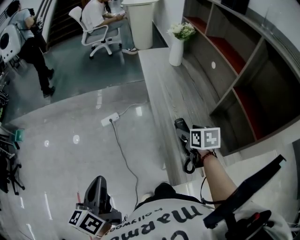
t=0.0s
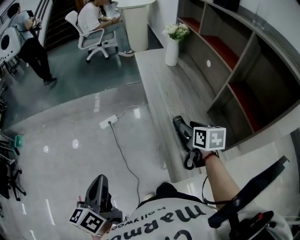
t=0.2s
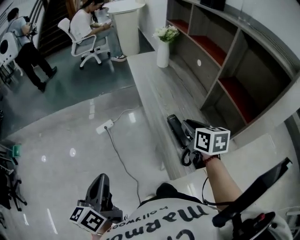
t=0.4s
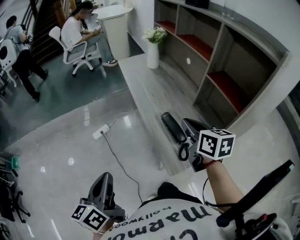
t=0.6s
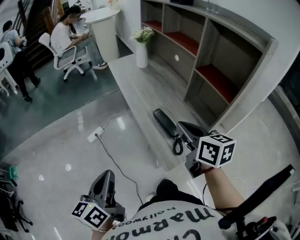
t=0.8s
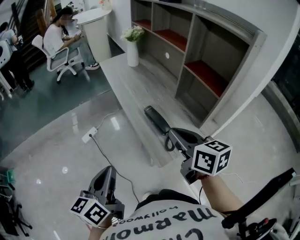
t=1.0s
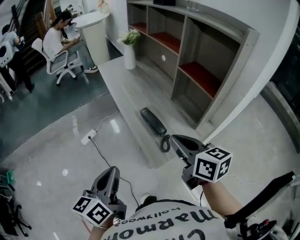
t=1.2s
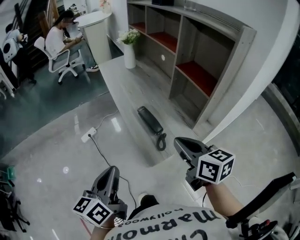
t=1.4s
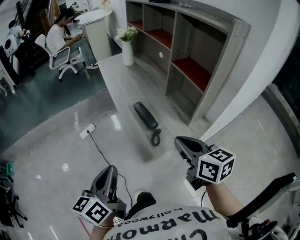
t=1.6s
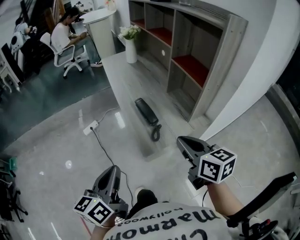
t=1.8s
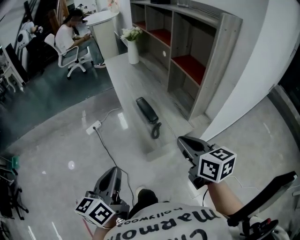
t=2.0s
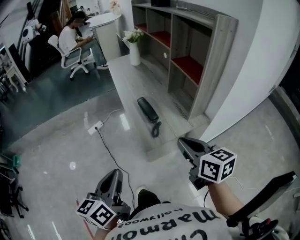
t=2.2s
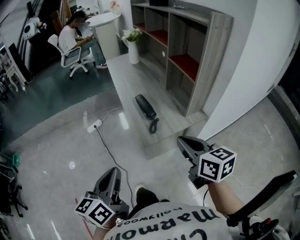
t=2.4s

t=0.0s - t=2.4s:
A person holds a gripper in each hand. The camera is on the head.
t=0.0s - t=1.2s: The left gripper is displaced to the right by roughly 10 cm, and changes its angle by approximately 30 degrees; the right gripper travels backward and upward by approximately 25 cm, turns by approximately 30 degrees, and closes up.
t=1.2s - t=2.4s: Both grippers move backward and to the right, some 15 cm.

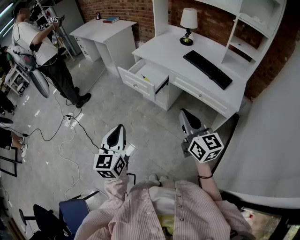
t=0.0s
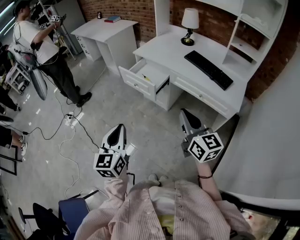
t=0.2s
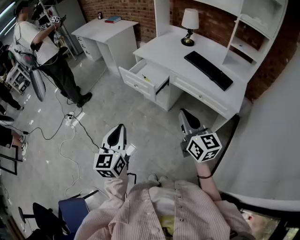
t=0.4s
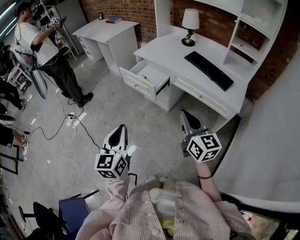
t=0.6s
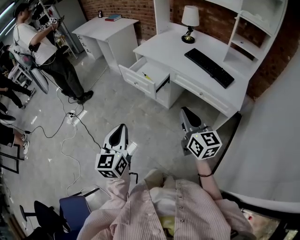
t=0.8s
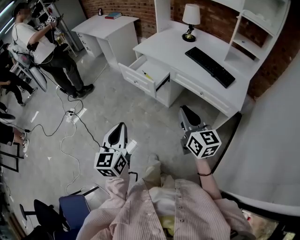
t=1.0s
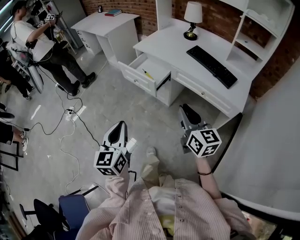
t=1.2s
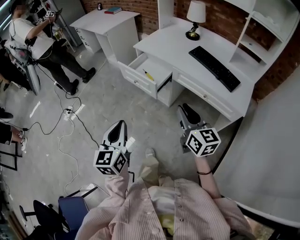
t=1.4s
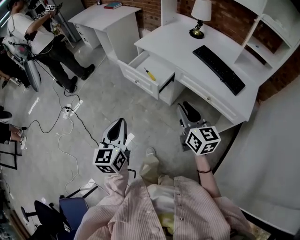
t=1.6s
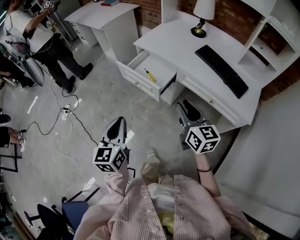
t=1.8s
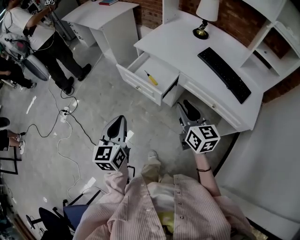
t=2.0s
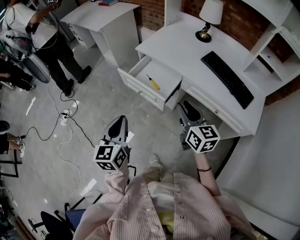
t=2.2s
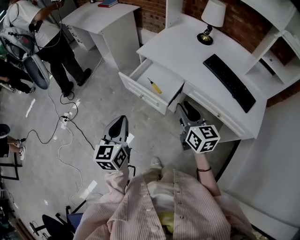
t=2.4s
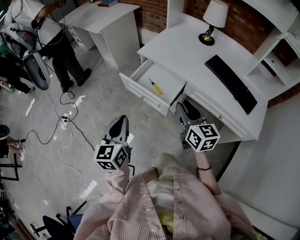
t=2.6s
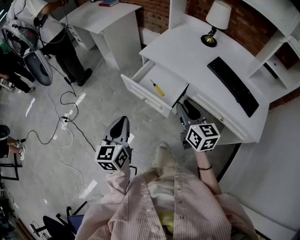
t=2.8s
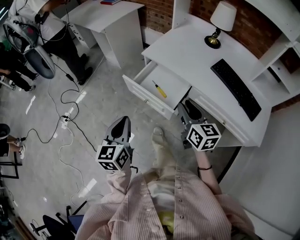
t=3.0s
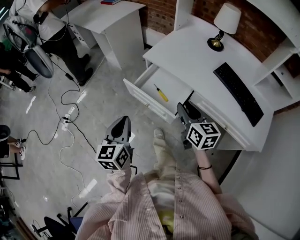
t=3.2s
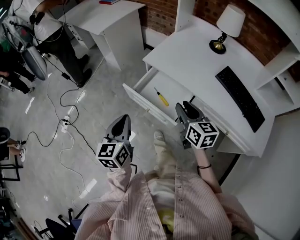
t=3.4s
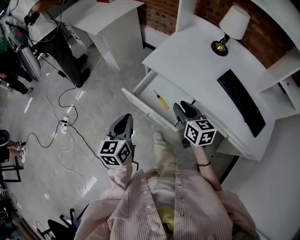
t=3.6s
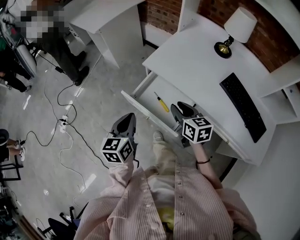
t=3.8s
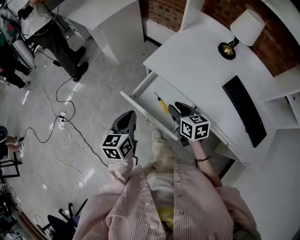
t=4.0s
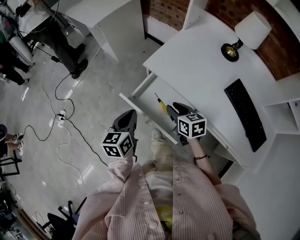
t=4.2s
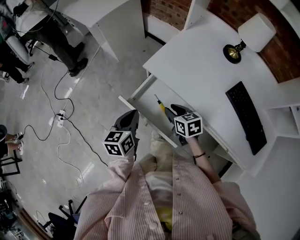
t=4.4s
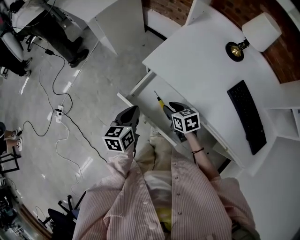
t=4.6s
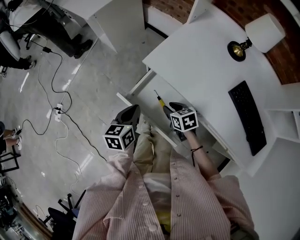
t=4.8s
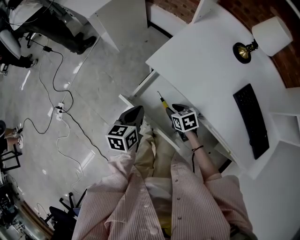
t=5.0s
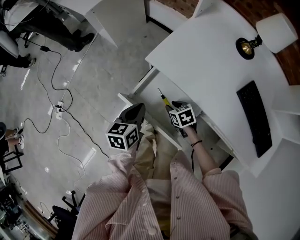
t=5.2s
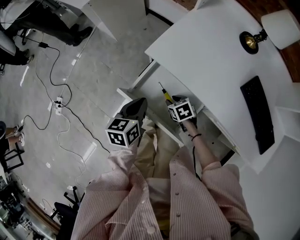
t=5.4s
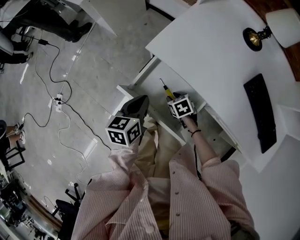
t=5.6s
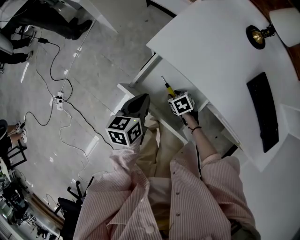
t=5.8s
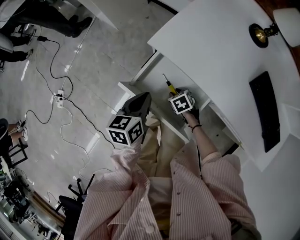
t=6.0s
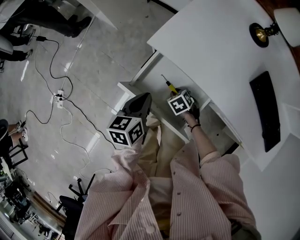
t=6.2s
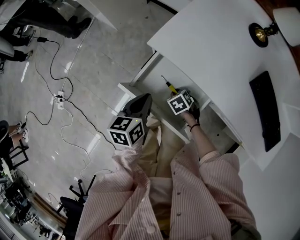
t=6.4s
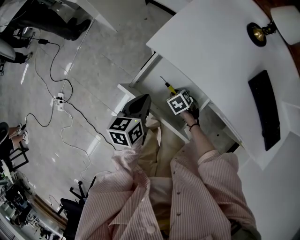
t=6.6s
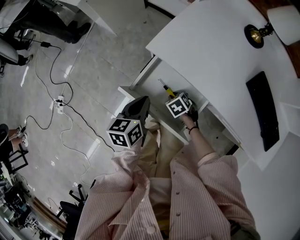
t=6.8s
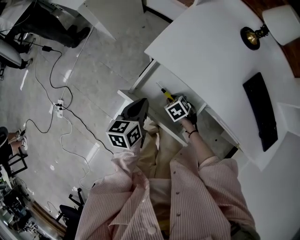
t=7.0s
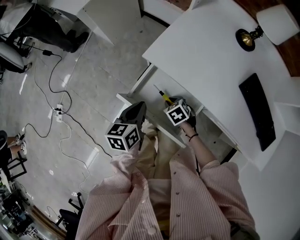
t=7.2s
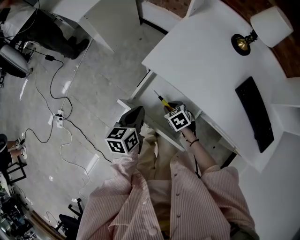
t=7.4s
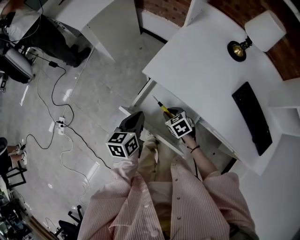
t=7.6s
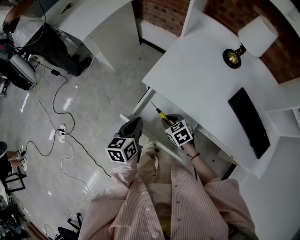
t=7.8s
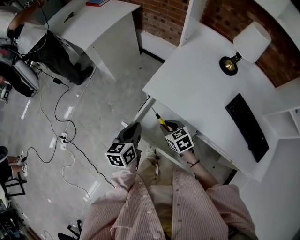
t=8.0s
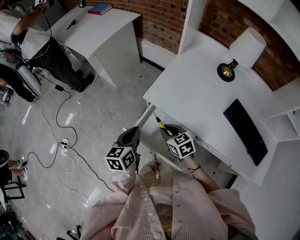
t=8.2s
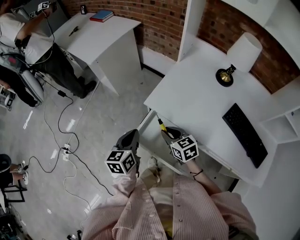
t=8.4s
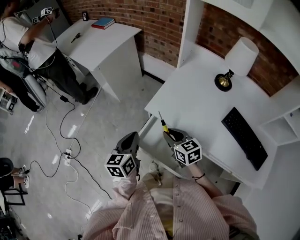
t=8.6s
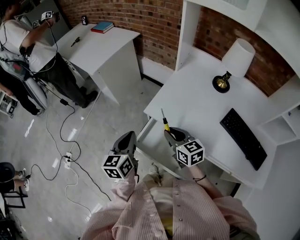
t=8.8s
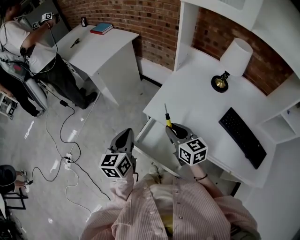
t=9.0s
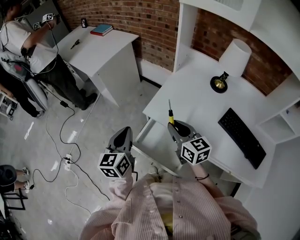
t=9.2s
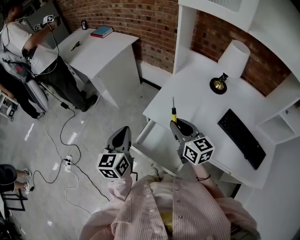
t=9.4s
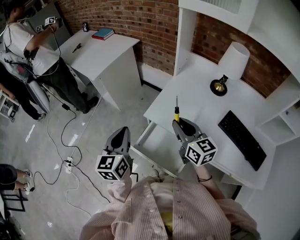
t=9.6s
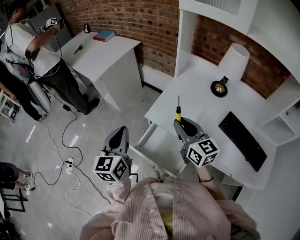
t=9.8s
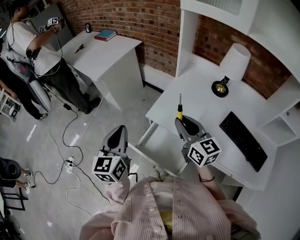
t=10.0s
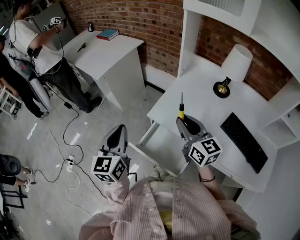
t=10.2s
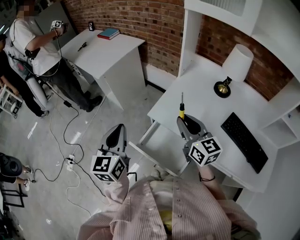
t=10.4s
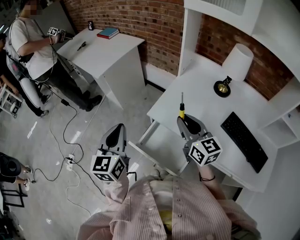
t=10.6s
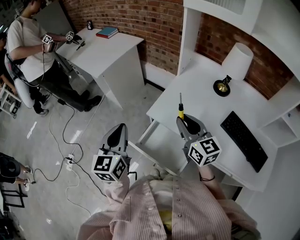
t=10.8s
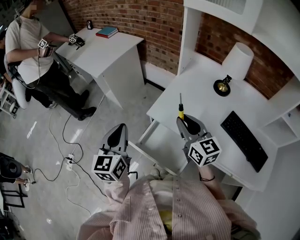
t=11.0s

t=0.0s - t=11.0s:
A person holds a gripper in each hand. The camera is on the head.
t=0.0s - t=1.6s: The right gripper moves forward and downward, approximately 15 cm, and opens, while the left gripper is displaced forward by approximately 10 cm.
t=1.6s - t=3.2s: The two grippers go about 25 cm forward.
t=3.2s - t=4.8s: The left gripper is displaced forward and downward by roughly 25 cm, and rotates about 20 degrees, while the right gripper shifts roughly 30 cm downward and forward, and tilts its fingers roughly 30 degrees downward.
t=4.8s - t=6.2s: The right gripper is displaced downward by some 15 cm, and changes its angle by some 30 degrees. The left gripper moves some 5 cm.
t=6.2s - t=7.8s: The left gripper moves approximately 5 cm. Meanwhile the right gripper heads upward, covering approximately 15 cm, and rotates about 20 degrees.
t=7.8s - t=9.4s: The right gripper goes some 25 cm upward, and tilts its fingers approximately 40 degrees upward; the left gripper shifts some 15 cm upward, and swivels some 20 degrees.
t=9.4s - t=11.0s: The left gripper changes place by roughly 5 cm.

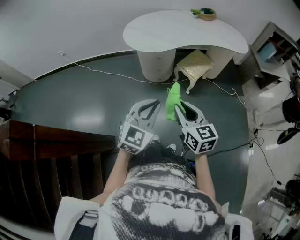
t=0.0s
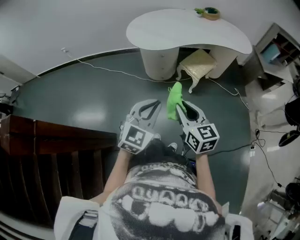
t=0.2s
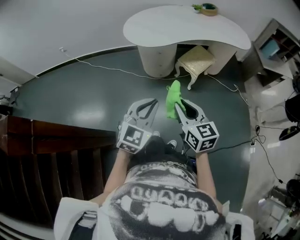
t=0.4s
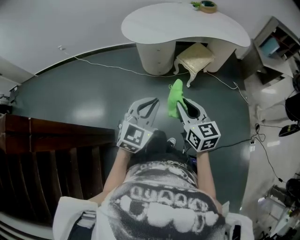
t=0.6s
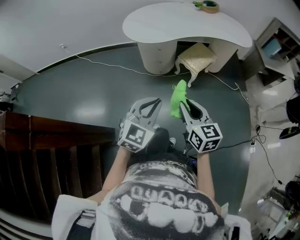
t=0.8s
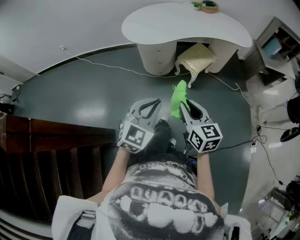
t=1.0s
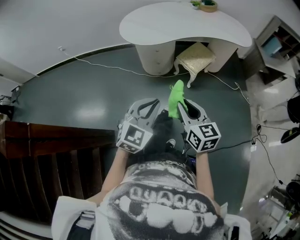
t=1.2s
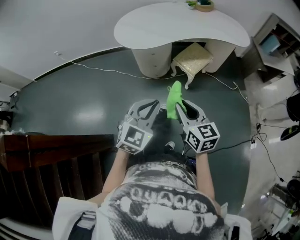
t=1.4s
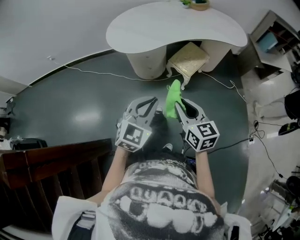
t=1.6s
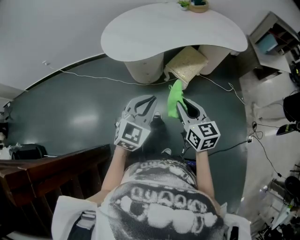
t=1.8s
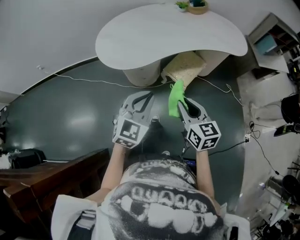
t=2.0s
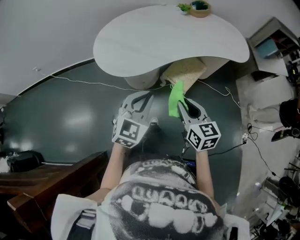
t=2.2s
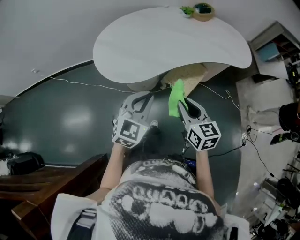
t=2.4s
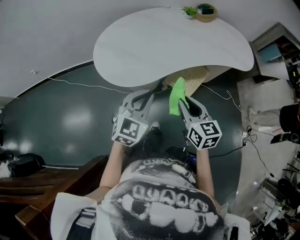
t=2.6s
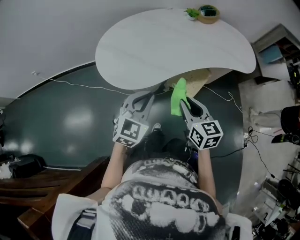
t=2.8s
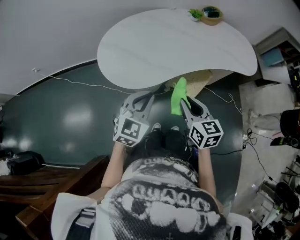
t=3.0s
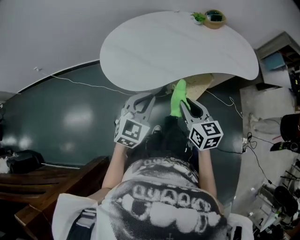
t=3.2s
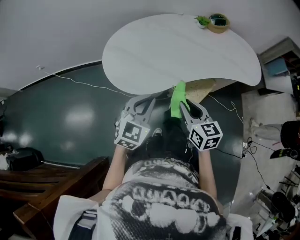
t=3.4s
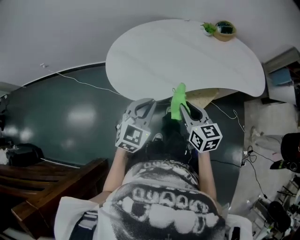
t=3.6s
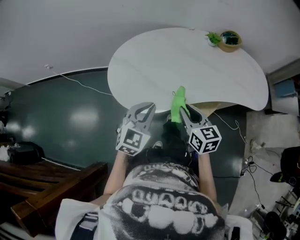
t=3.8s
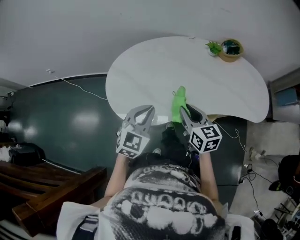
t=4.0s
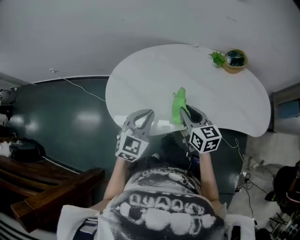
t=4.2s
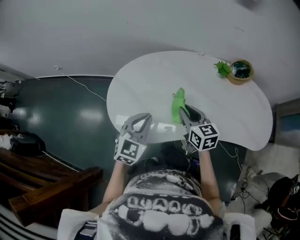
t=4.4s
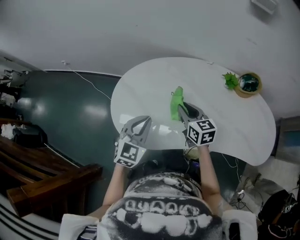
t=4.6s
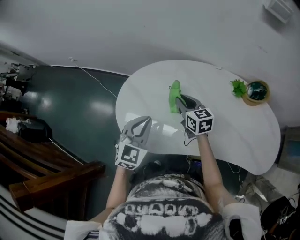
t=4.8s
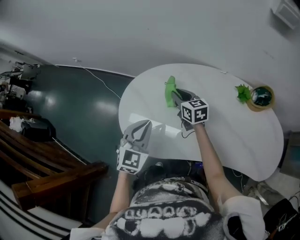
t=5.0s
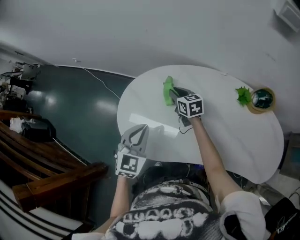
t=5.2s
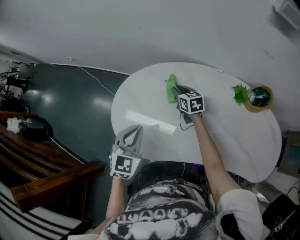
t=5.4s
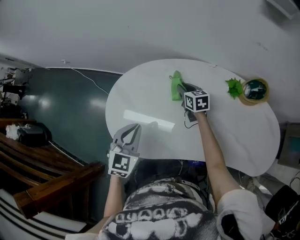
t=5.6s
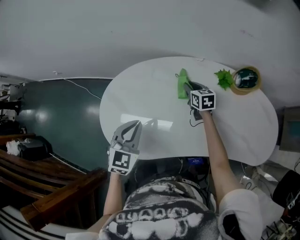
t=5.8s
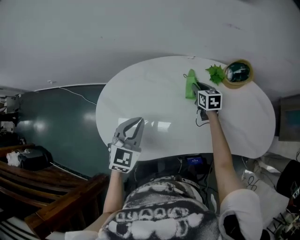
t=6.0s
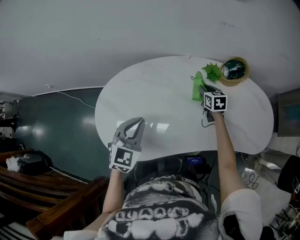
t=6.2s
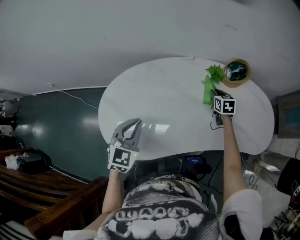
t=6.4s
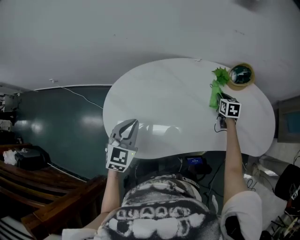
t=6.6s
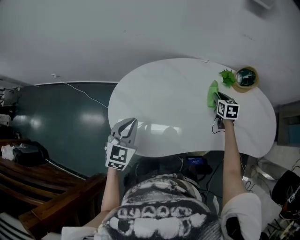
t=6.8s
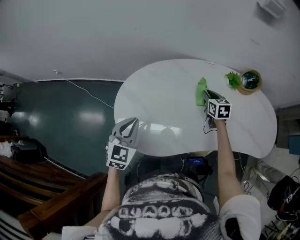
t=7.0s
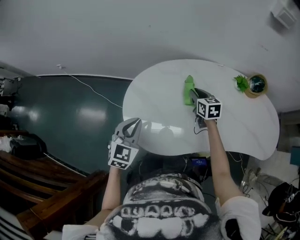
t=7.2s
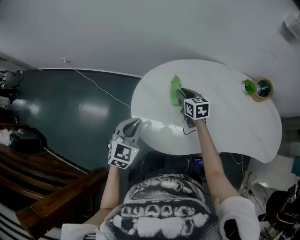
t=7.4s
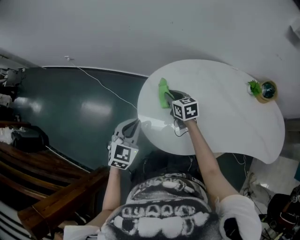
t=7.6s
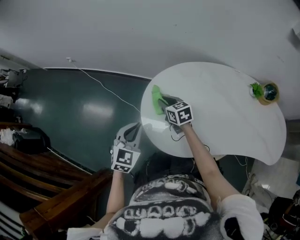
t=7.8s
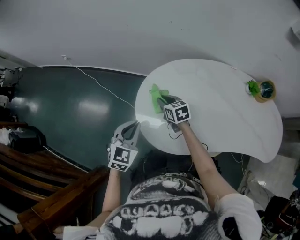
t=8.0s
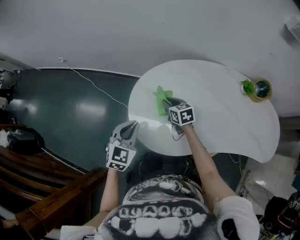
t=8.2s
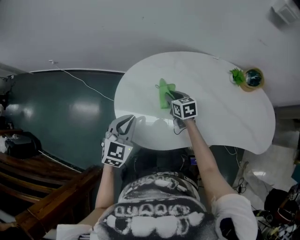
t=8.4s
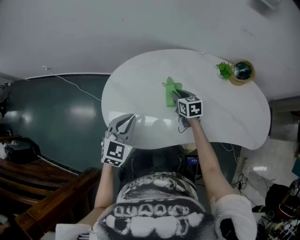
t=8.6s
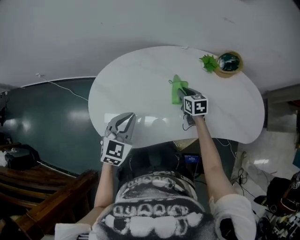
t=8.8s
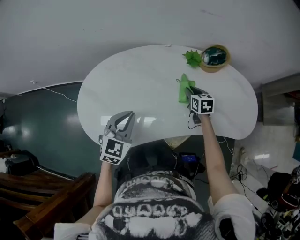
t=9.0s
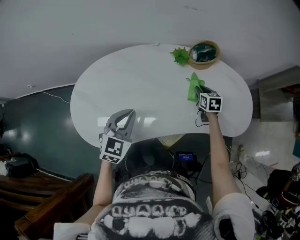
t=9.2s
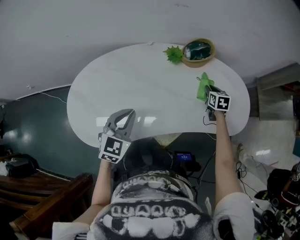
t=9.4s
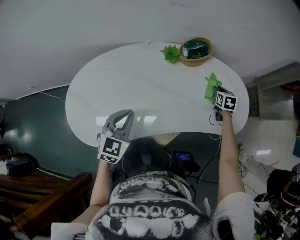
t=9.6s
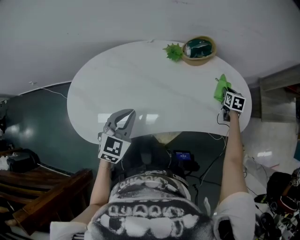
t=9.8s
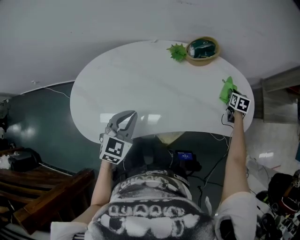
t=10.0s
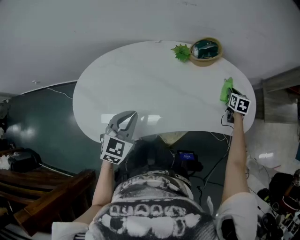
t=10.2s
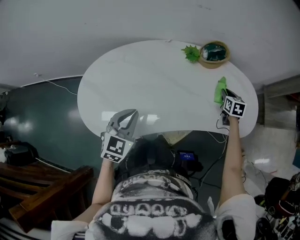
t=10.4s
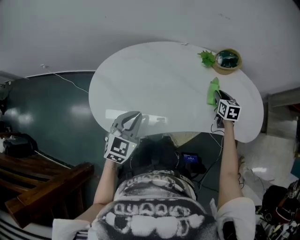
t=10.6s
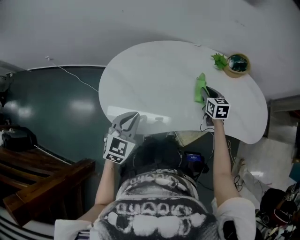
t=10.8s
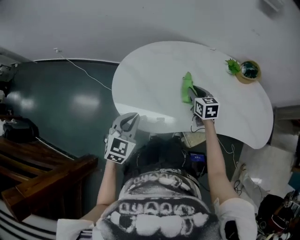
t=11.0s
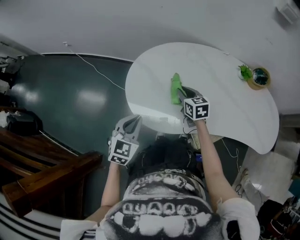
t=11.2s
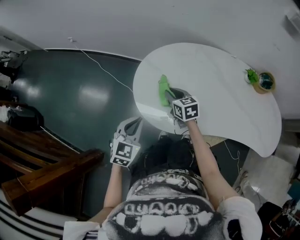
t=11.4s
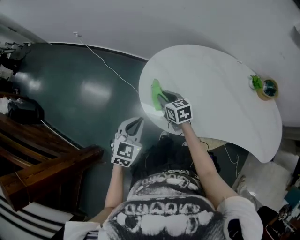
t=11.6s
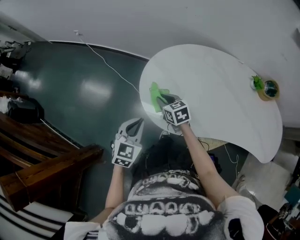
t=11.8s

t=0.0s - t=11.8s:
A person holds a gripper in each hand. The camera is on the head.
t=0.0s - t=1.4s: The two grippers go some 5 cm to the right.
t=1.4s - t=3.0s: The two grippers go some 35 cm forward.
t=3.0s - t=4.4s: The two grippers go approximately 30 cm forward. The right gripper turns by some 20 degrees.
t=4.4s - t=6.0s: The right gripper shifts about 30 cm forward, to the right and downward. Meanwhile the left gripper moves forward and to the right, approximately 10 cm.
t=6.0s - t=7.4s: Both grippers move to the left, some 30 cm.
t=7.4s - t=8.8s: The grippers both shift to the right by approximately 25 cm.
t=8.8s - t=10.4s: The right gripper shifts about 35 cm to the right, and changes its angle by roughly 20 degrees; the left gripper shifts some 15 cm to the right.
t=10.4s - t=11.8s: The right gripper shifts by approximately 80 cm, and changes its angle by some 50 degrees. The left gripper moves some 40 cm, and turns by roughly 20 degrees.
